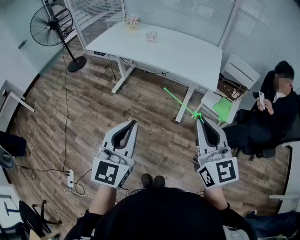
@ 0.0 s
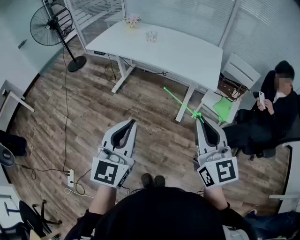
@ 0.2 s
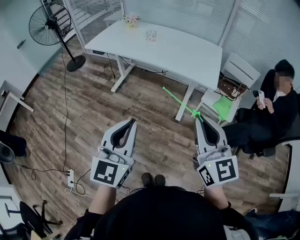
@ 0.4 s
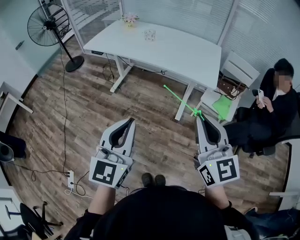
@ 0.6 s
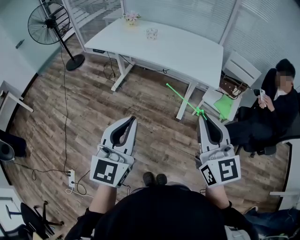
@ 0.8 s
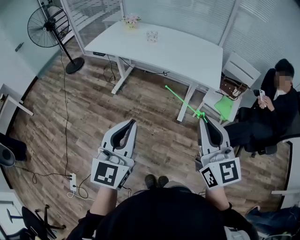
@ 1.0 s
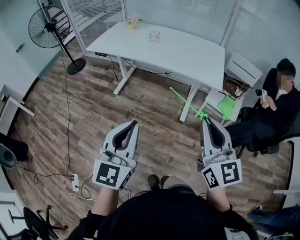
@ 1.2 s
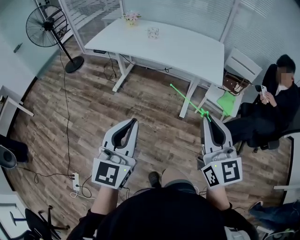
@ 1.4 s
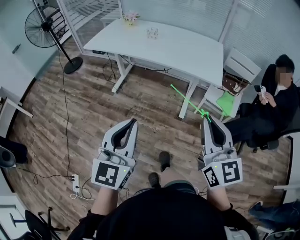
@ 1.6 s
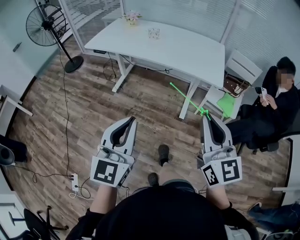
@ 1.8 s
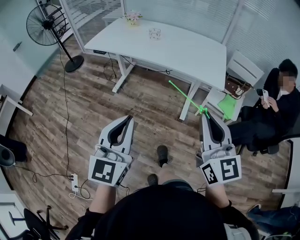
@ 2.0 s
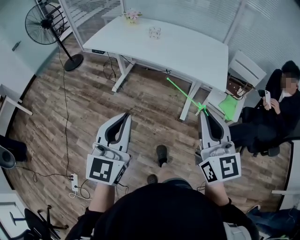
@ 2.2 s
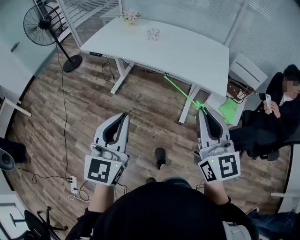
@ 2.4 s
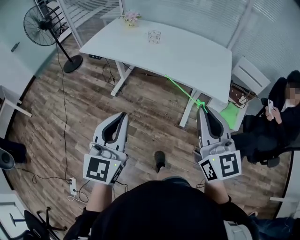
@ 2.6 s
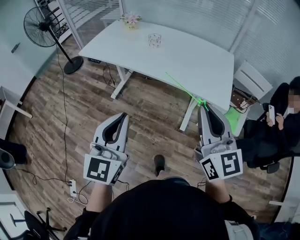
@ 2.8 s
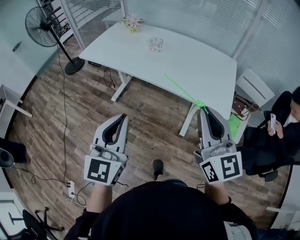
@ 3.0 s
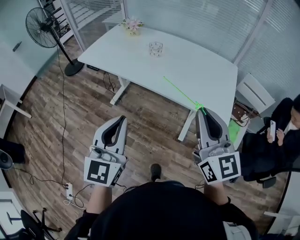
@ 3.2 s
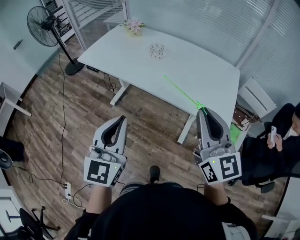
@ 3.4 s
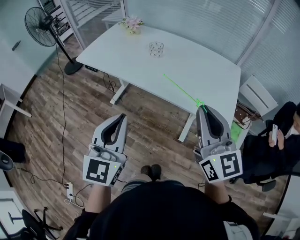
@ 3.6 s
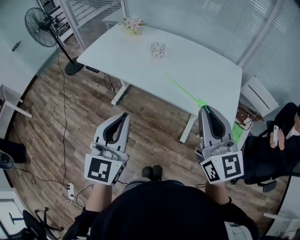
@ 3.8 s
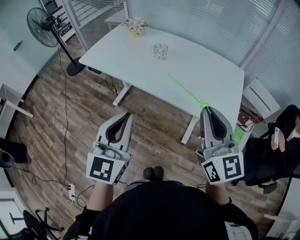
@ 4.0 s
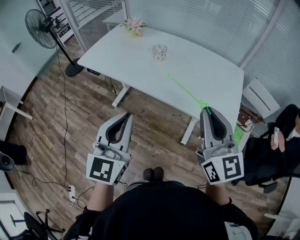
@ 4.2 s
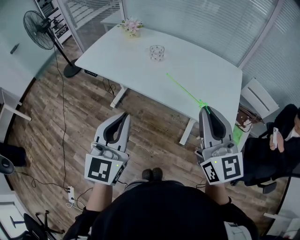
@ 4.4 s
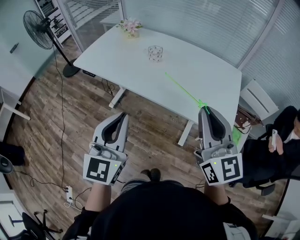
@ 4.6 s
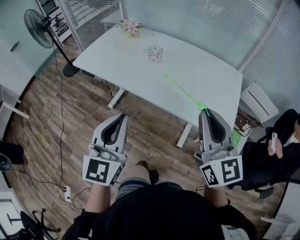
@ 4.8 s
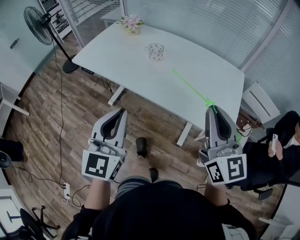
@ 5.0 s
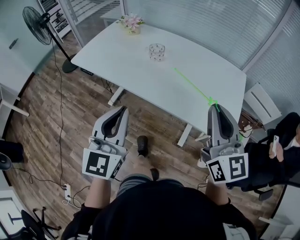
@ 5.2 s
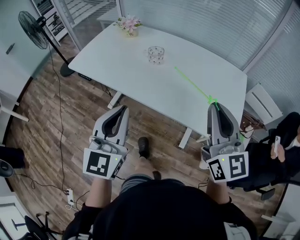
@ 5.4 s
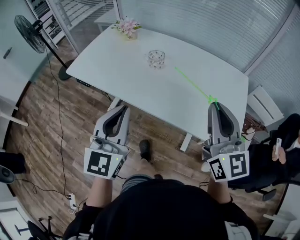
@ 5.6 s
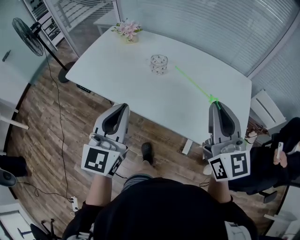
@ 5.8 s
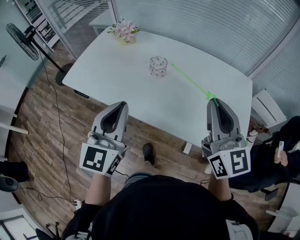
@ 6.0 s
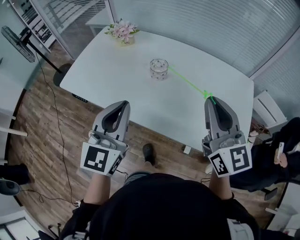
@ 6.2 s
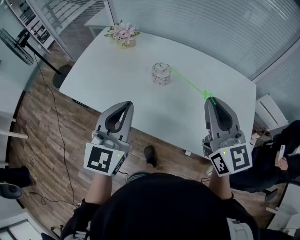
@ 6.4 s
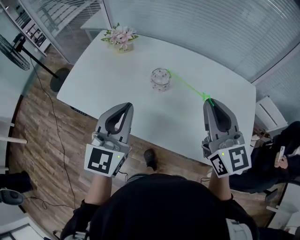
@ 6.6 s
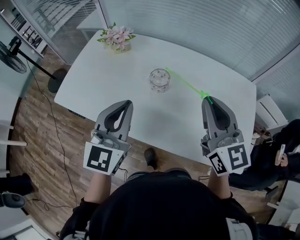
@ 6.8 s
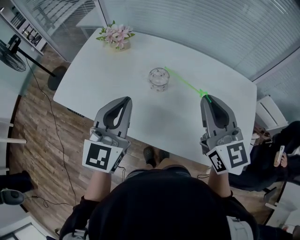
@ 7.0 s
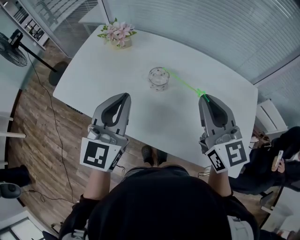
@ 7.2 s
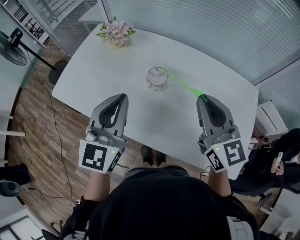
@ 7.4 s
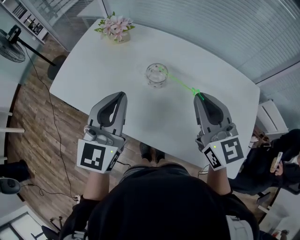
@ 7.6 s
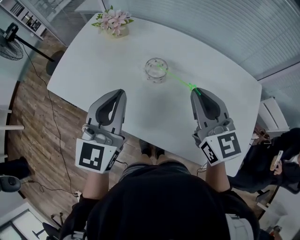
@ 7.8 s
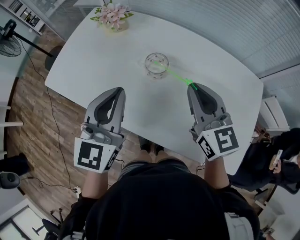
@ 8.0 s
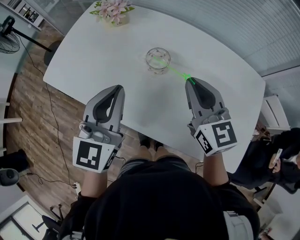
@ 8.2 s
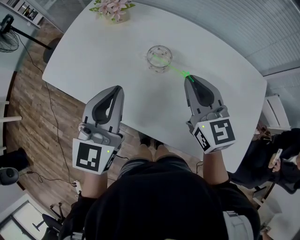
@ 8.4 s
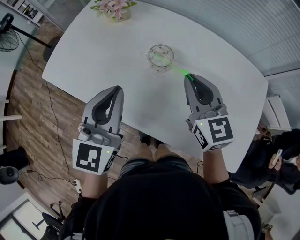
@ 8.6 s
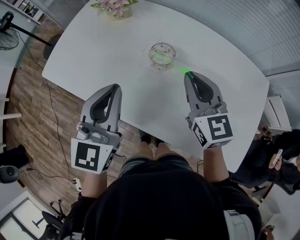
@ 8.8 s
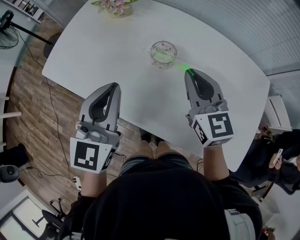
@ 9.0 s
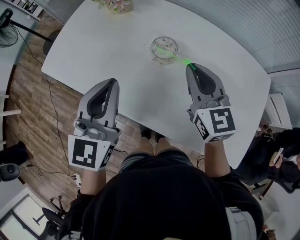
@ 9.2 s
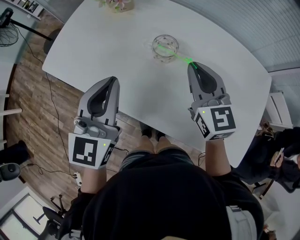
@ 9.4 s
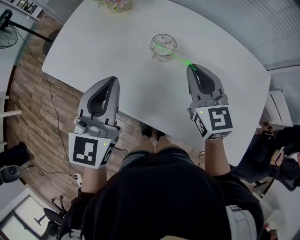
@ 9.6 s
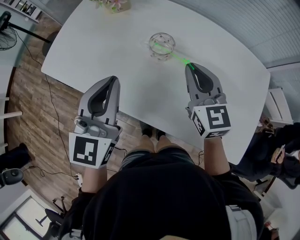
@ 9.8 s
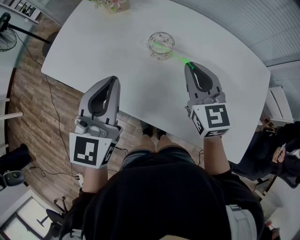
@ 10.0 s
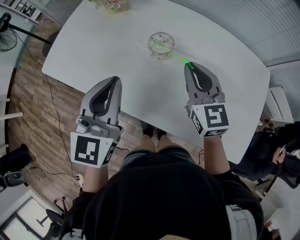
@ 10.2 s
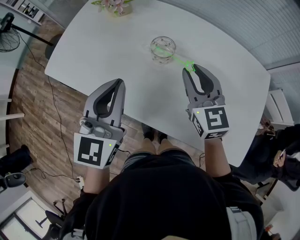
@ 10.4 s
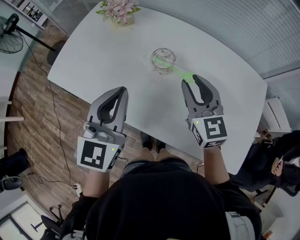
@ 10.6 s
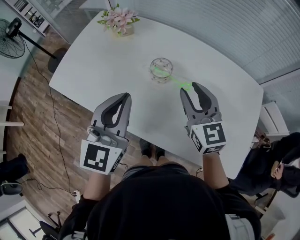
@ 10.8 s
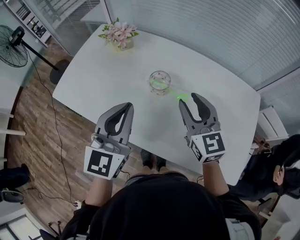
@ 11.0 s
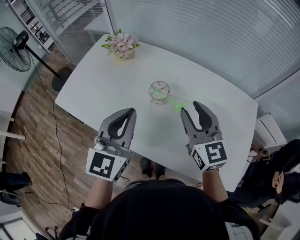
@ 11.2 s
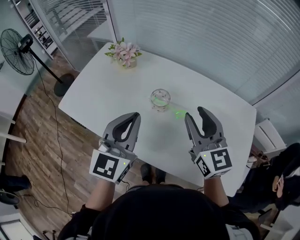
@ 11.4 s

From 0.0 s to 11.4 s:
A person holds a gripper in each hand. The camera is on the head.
From 0.0 s to 1.4 s: The left gripper moves about 5 cm.
From 1.4 s to 2.8 s: Both grippers travel together forward, roughly 20 cm.
From 2.8 s to 4.2 s: The grippers both shift forward by about 15 cm.
From 4.2 s to 5.6 s: Both grippers travel together forward, roughly 15 cm.
From 5.6 s to 7.2 s: Both grippers move forward, approximately 20 cm.
From 7.2 s to 8.6 s: The right gripper heads downward and forward, covering some 10 cm.
From 8.6 s to 10.0 s: The grippers make only small movements.
From 10.0 s to 11.4 s: The left gripper goes roughly 5 cm upward; the right gripper goes some 10 cm upward, and opens.

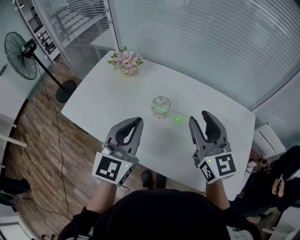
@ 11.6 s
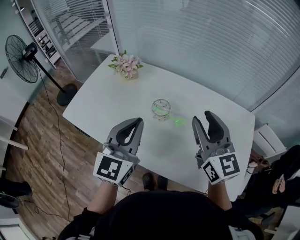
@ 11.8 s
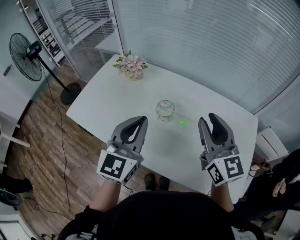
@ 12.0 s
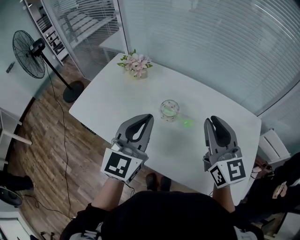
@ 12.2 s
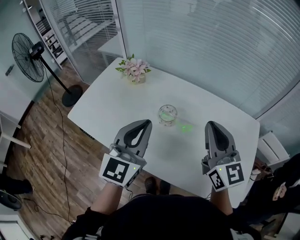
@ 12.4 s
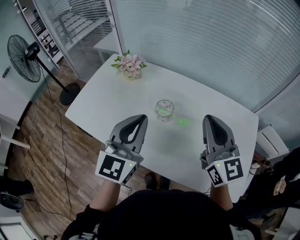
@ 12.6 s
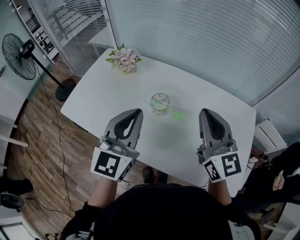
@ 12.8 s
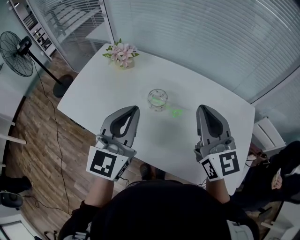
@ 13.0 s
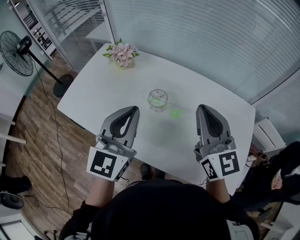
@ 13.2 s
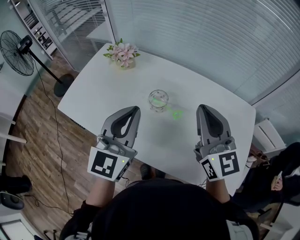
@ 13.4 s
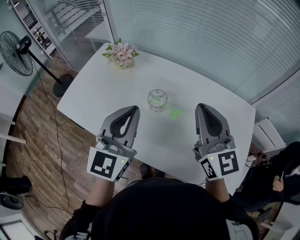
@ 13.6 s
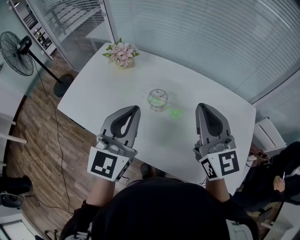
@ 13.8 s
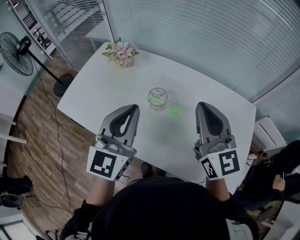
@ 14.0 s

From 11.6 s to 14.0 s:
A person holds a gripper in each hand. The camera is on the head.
From 11.6 s to 12.8 s: The right gripper closes.
From 12.8 s to 14.0 s: Neither gripper changes place.

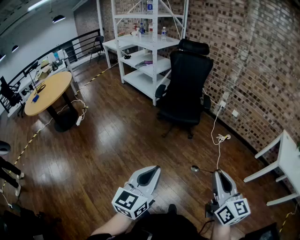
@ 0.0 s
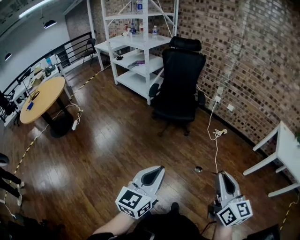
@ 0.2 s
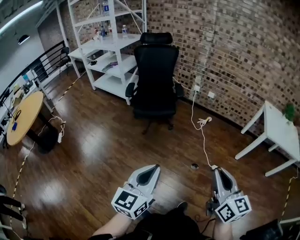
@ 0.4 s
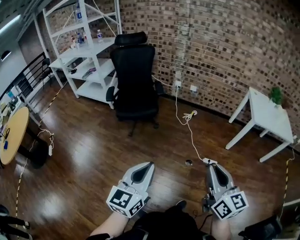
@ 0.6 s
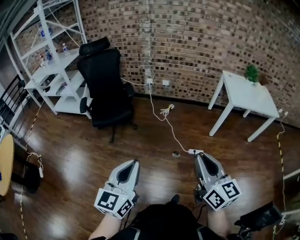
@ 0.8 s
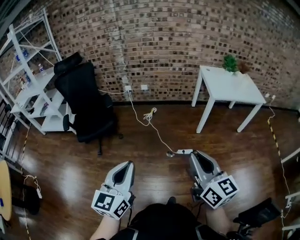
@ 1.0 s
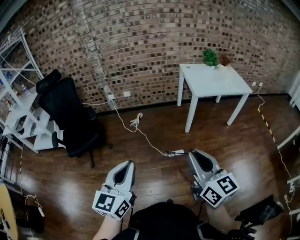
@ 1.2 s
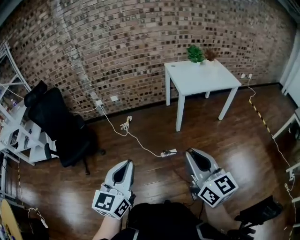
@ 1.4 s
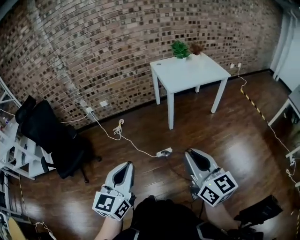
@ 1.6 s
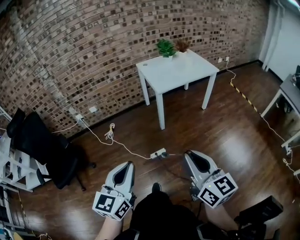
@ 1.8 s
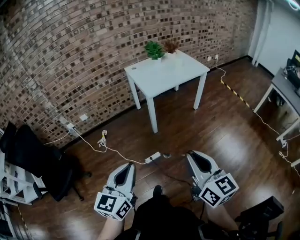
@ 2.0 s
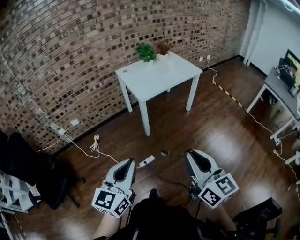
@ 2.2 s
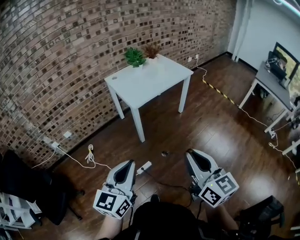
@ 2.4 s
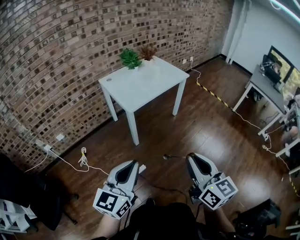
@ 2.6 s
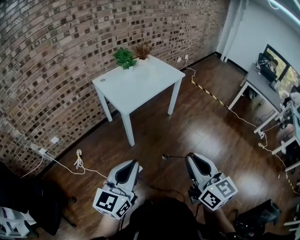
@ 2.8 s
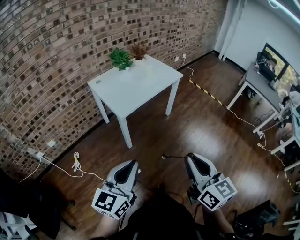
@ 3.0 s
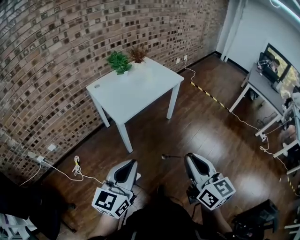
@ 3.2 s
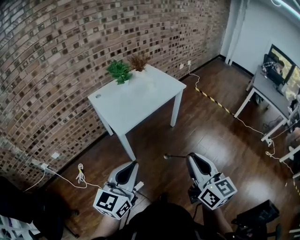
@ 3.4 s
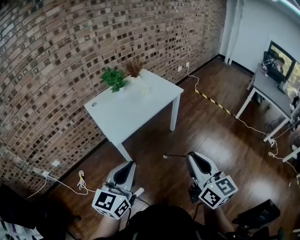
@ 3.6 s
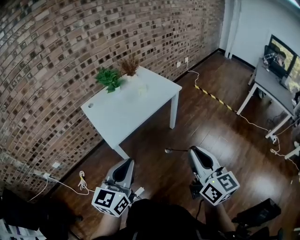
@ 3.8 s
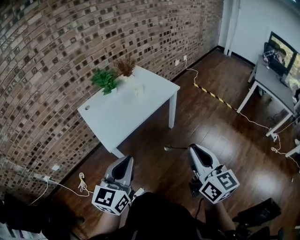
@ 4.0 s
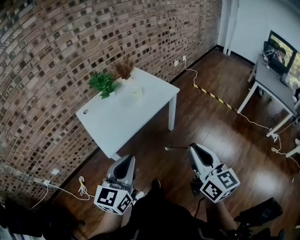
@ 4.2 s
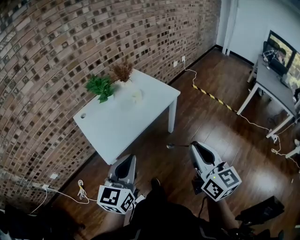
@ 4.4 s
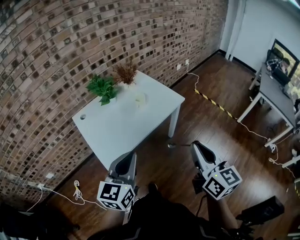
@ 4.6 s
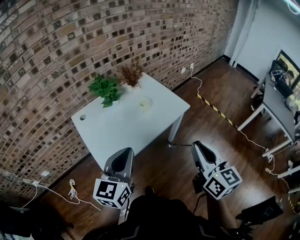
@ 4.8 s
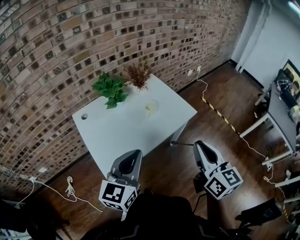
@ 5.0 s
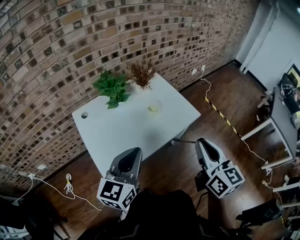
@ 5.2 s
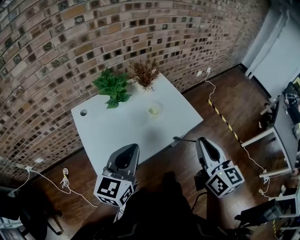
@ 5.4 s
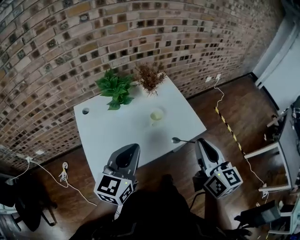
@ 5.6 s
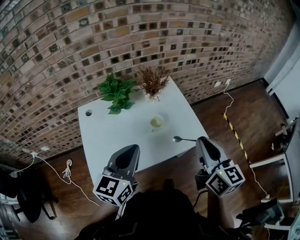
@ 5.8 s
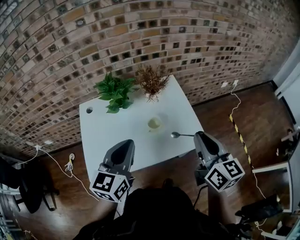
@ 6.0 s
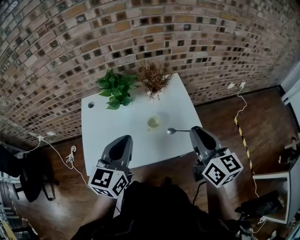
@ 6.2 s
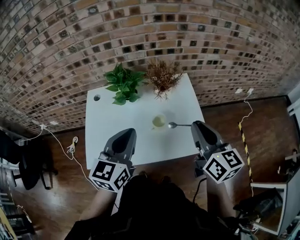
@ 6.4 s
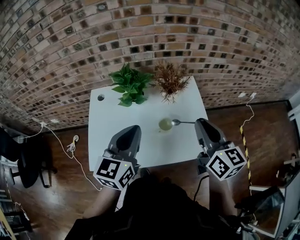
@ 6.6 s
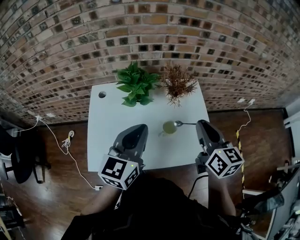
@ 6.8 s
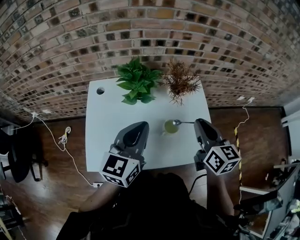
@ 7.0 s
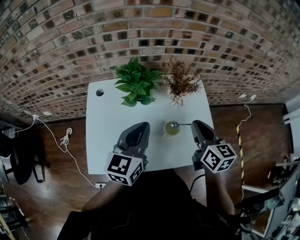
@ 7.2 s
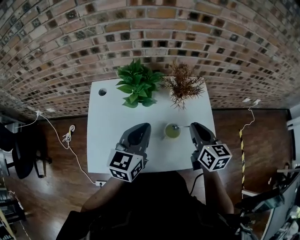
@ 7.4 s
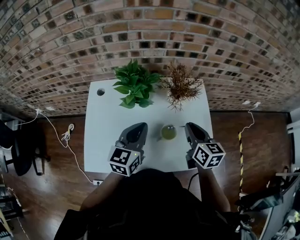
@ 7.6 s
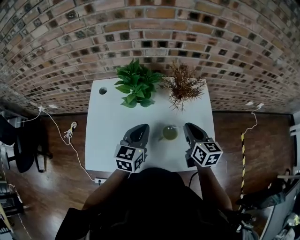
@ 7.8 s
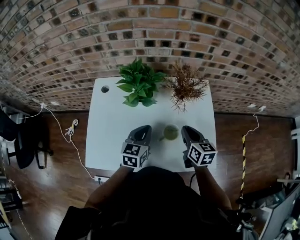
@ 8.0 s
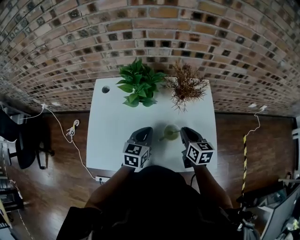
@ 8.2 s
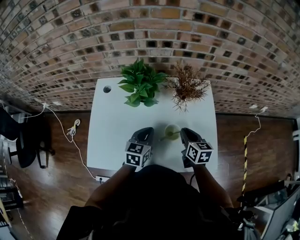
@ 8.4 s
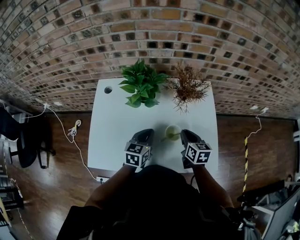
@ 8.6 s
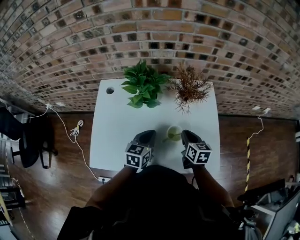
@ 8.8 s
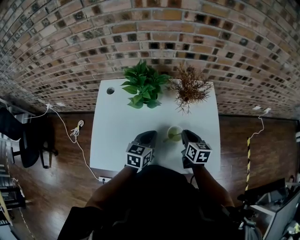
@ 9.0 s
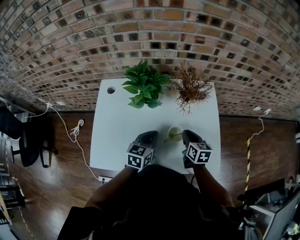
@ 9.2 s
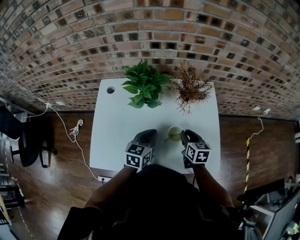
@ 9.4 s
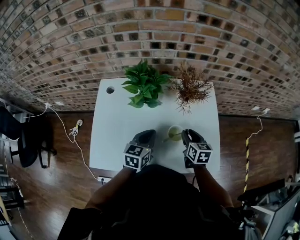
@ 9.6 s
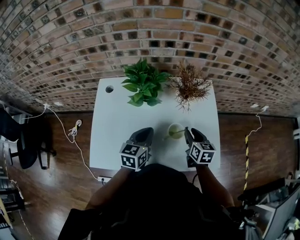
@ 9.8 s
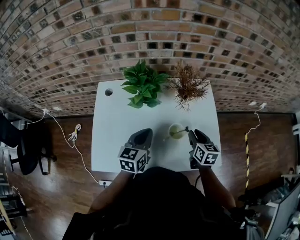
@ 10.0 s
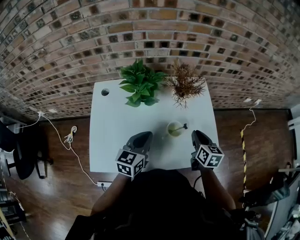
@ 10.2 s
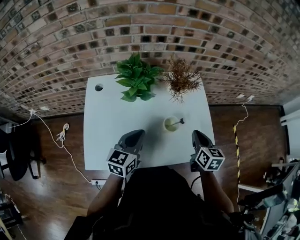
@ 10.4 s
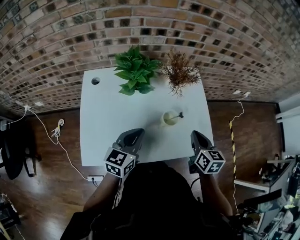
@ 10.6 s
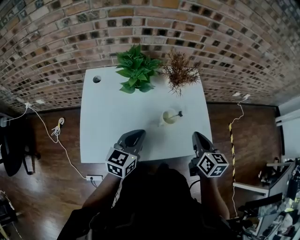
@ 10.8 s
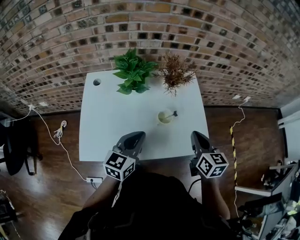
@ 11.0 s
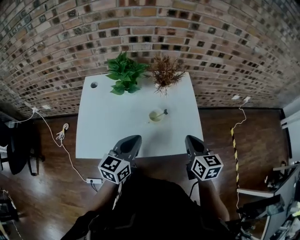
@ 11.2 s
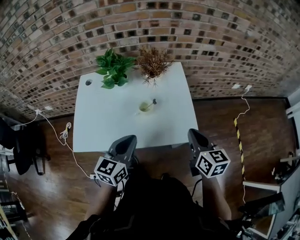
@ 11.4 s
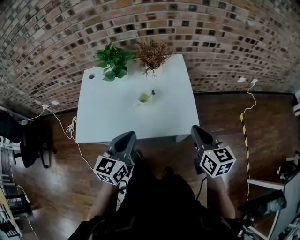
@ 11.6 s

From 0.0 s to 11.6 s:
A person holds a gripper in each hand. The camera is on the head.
From 0.0 s to 1.4 s: The two grippers travel together, roughly 40 cm. The right gripper swivels approximately 40 degrees, while the left gripper rotates approximately 40 degrees.
From 1.4 s to 2.8 s: The right gripper changes place by roughly 25 cm, and swivels some 30 degrees; the left gripper changes place by about 35 cm, and turns by roughly 40 degrees.
From 2.8 s to 4.4 s: The two grippers go approximately 40 cm forward.
From 4.4 s to 5.8 s: The grippers both shift forward by roughly 35 cm. The right gripper turns by approximately 20 degrees.
From 5.8 s to 7.2 s: The left gripper goes some 15 cm forward; the right gripper travels forward and downward by roughly 25 cm, and rotates some 20 degrees.
From 7.2 s to 8.8 s: Both grippers travel together downward, about 20 cm.
From 8.8 s to 10.2 s: The right gripper shifts by approximately 10 cm, while the left gripper shifts about 5 cm upward.
From 10.2 s to 11.6 s: The right gripper shifts about 25 cm backward, to the right and upward; the left gripper is displaced backward and to the right by approximately 20 cm.
